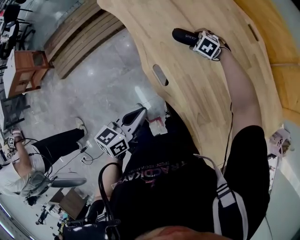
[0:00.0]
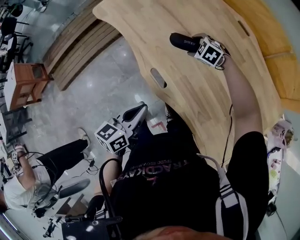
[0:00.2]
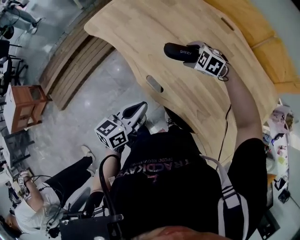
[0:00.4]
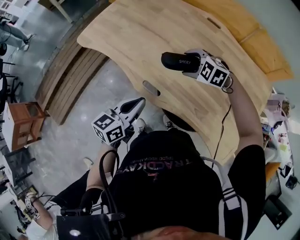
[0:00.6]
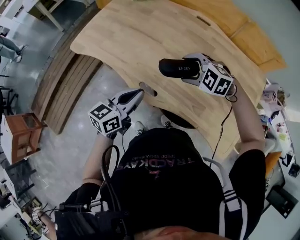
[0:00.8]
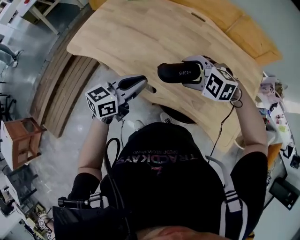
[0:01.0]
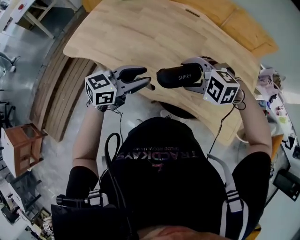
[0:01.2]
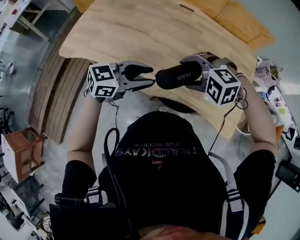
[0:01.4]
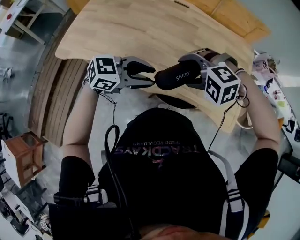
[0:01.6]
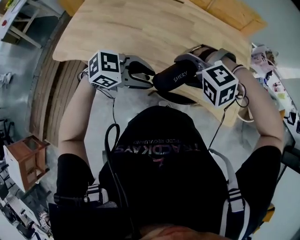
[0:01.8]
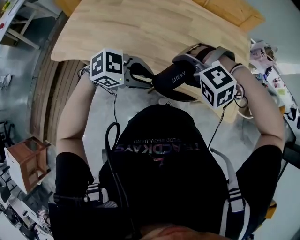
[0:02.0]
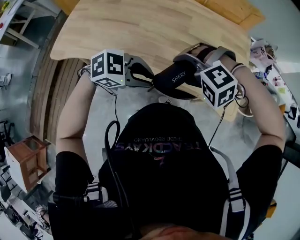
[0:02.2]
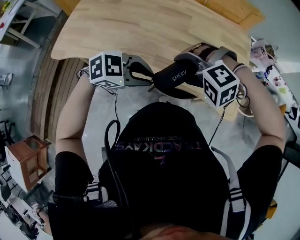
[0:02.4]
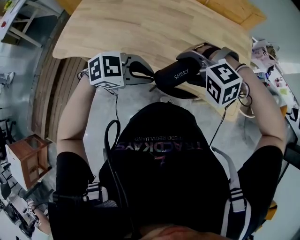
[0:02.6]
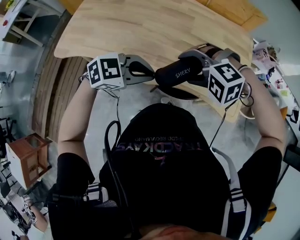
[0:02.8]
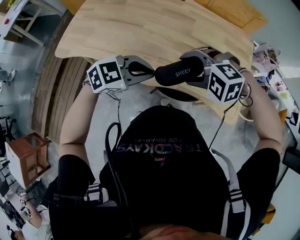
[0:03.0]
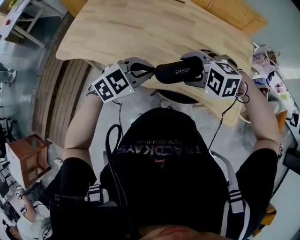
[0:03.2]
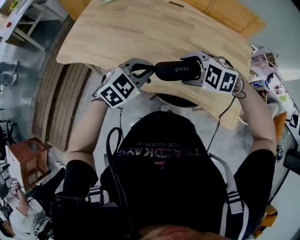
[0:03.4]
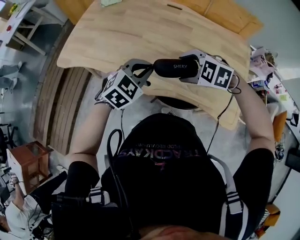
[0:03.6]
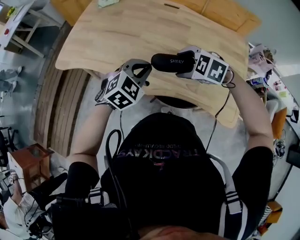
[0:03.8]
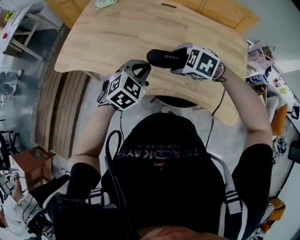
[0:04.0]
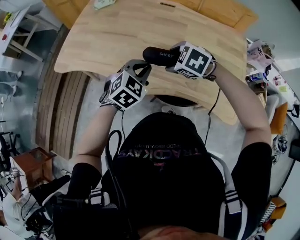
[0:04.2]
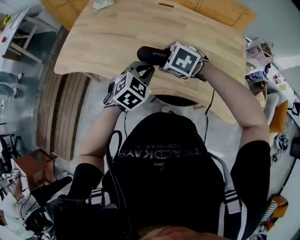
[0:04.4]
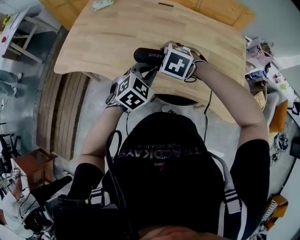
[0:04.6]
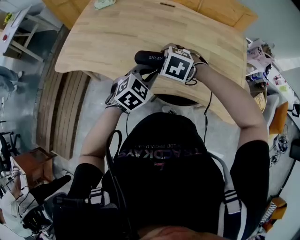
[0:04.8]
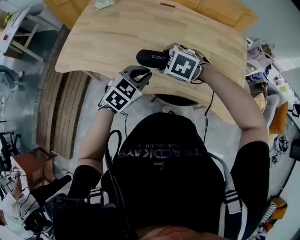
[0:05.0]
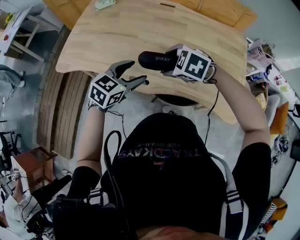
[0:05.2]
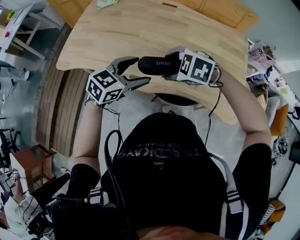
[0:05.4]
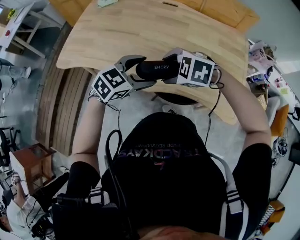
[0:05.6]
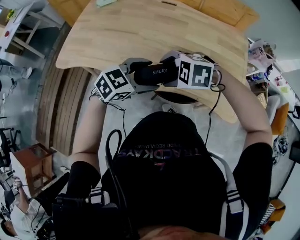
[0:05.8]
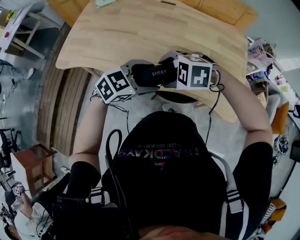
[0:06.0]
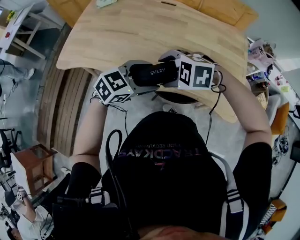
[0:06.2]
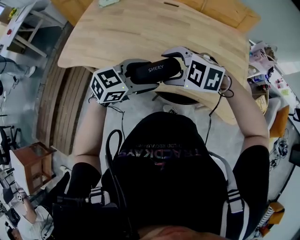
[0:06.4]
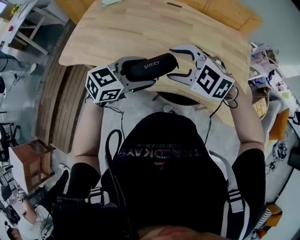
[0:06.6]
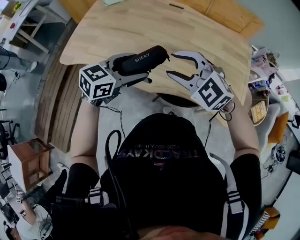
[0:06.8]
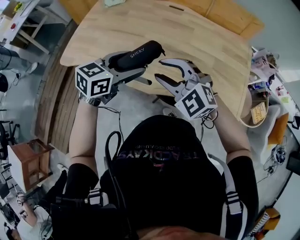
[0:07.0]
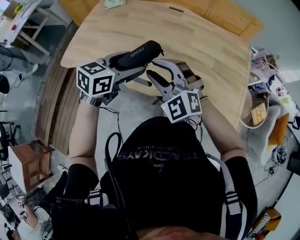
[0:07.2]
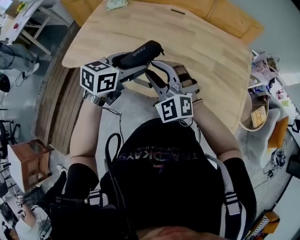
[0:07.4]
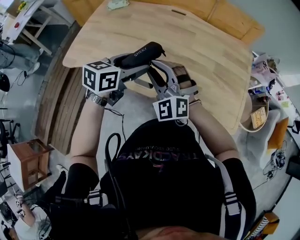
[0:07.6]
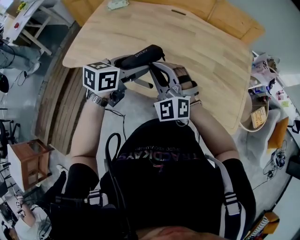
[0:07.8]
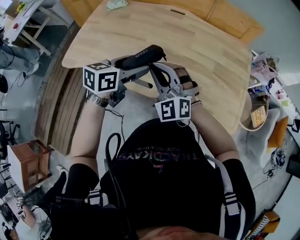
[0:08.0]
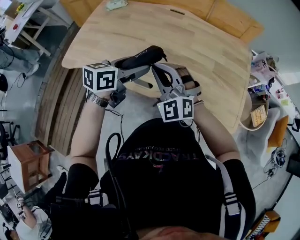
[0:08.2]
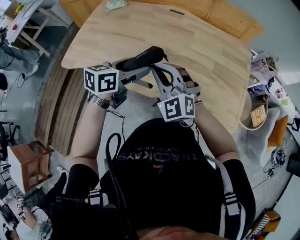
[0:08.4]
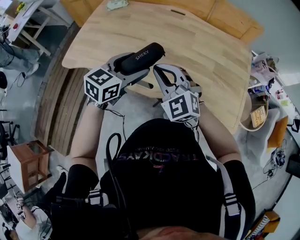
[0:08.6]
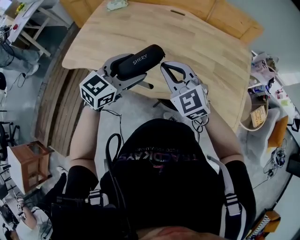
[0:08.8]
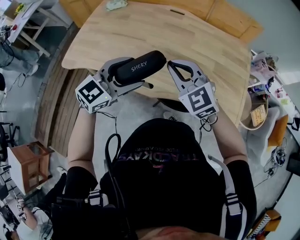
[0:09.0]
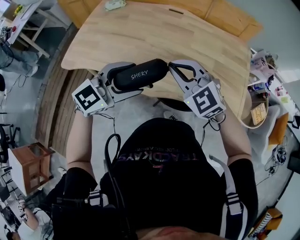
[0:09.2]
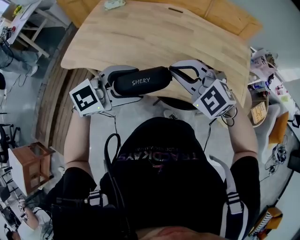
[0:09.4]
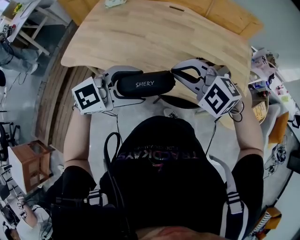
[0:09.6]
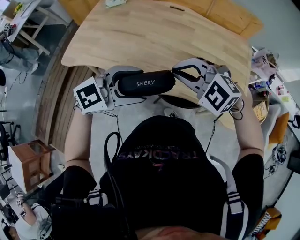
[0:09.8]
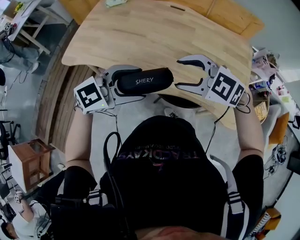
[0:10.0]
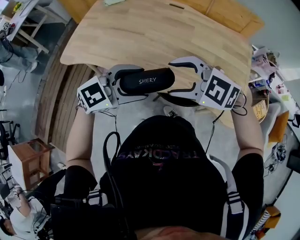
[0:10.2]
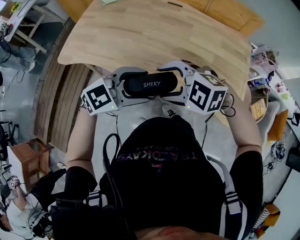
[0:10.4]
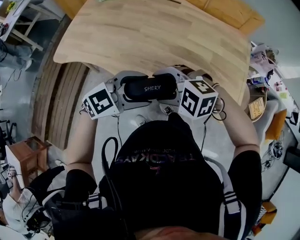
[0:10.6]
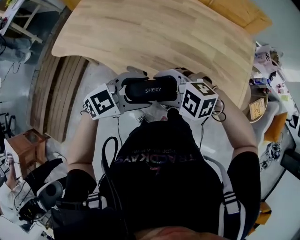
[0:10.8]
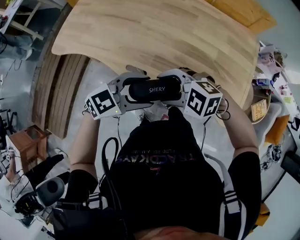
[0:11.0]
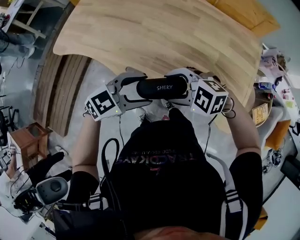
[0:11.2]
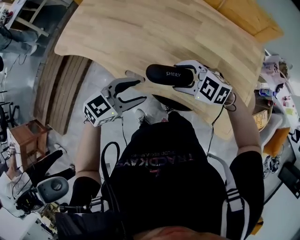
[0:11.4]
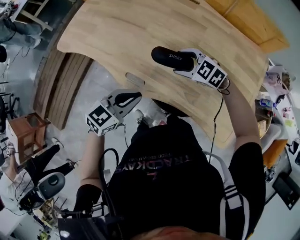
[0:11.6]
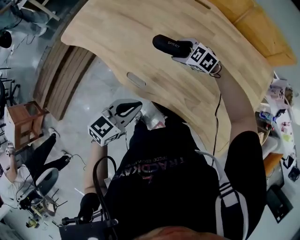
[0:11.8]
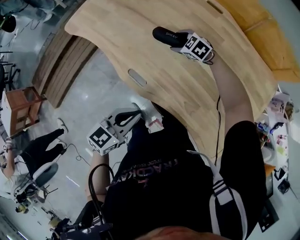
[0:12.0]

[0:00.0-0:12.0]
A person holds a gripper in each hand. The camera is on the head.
0:00.0 to 0:01.6: The left gripper shifts some 10 cm upward, turns by approximately 90 degrees, and opens up. Meanwhile the right gripper changes place by some 40 cm.
0:01.6 to 0:03.0: The left gripper closes up.
0:03.0 to 0:04.4: The right gripper changes place by some 10 cm, and twists roughly 40 degrees clockwise, seen from behind. The left gripper shifts by approximately 5 cm, and rotates approximately 40 degrees.
0:04.4 to 0:06.0: The left gripper ends up some 5 cm from where it was, rotates some 30 degrees, and opens. Meanwhile the right gripper moves roughly 10 cm, and turns by about 30 degrees.
0:06.0 to 0:07.6: The left gripper ends up approximately 10 cm from where it was, and rotates roughly 40 degrees. Meanwhile the right gripper changes place by approximately 10 cm, angles its fingers upward, by approximately 50 degrees, and closes.
0:07.6 to 0:09.0: The left gripper goes some 5 cm backward, and rotates approximately 30 degrees. Meanwhile the right gripper heads to the right, covering about 5 cm, and turns by approximately 30 degrees.
0:09.0 to 0:10.4: The left gripper moves about 10 cm. Meanwhile the right gripper changes place by approximately 10 cm, swivels roughly 40 degrees, and opens up.
0:10.4 to 0:12.0: The left gripper is displaced downward by roughly 10 cm, rotates some 60 degrees, and closes up; the right gripper ends up approximately 40 cm from where it was.

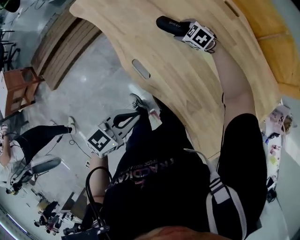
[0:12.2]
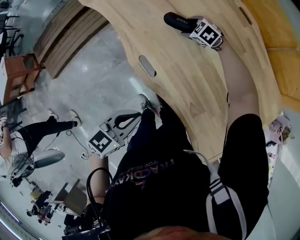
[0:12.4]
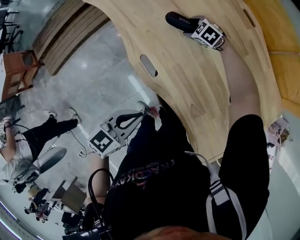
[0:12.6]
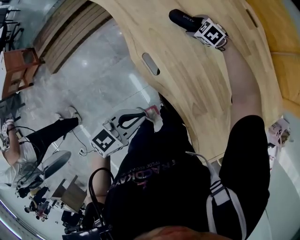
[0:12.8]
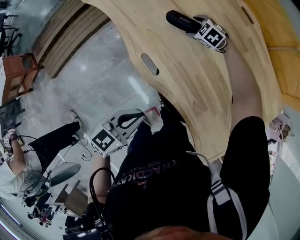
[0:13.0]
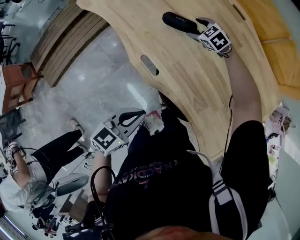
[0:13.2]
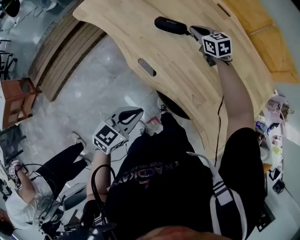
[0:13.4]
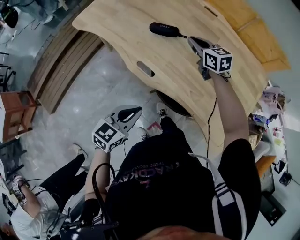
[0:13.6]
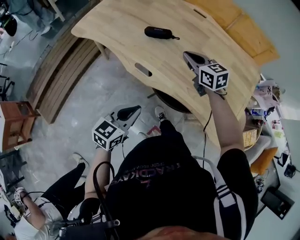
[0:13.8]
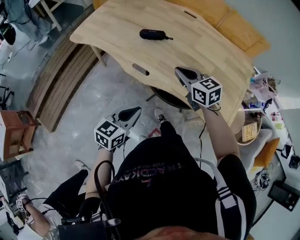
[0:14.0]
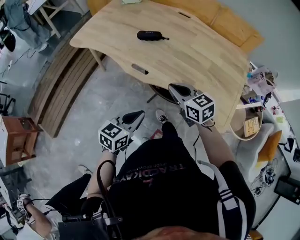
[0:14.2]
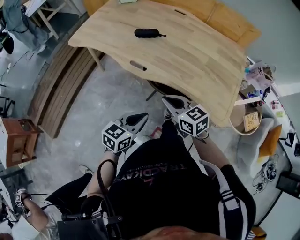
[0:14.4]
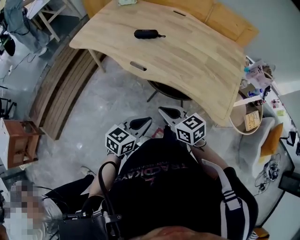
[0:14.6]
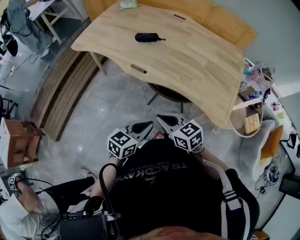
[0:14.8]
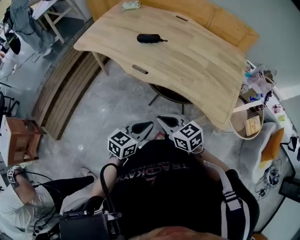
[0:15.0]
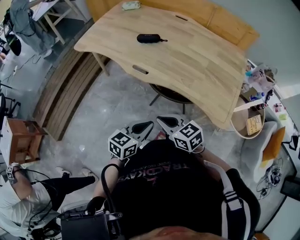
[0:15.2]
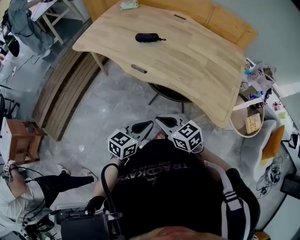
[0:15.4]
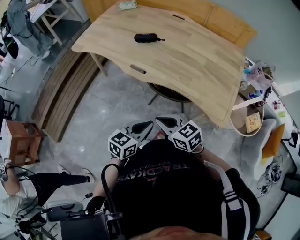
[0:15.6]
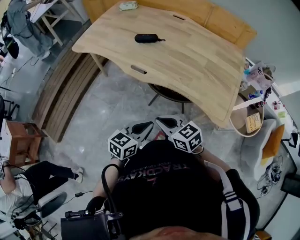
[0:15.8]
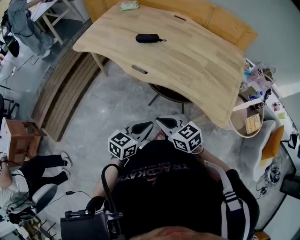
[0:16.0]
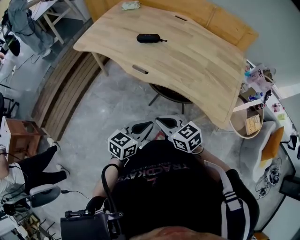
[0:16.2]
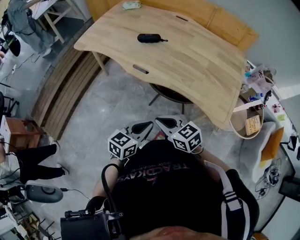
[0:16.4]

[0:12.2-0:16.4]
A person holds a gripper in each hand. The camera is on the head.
0:12.2 to 0:13.6: The left gripper shifts roughly 5 cm to the left, while the right gripper heads upward and backward, covering roughly 20 cm, changes its angle by about 50 degrees, and closes up.
0:13.6 to 0:15.0: The right gripper goes some 50 cm backward; the left gripper goes approximately 15 cm backward.
0:15.0 to 0:16.4: Neither gripper changes place.

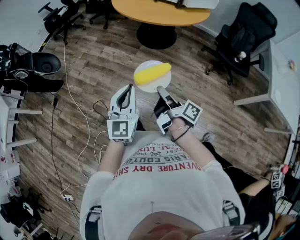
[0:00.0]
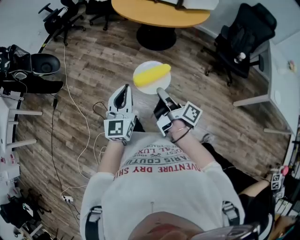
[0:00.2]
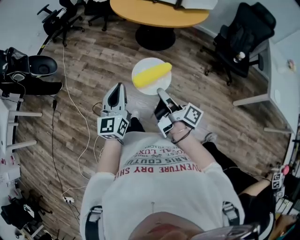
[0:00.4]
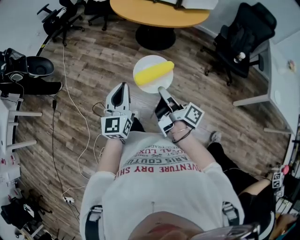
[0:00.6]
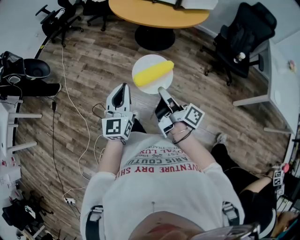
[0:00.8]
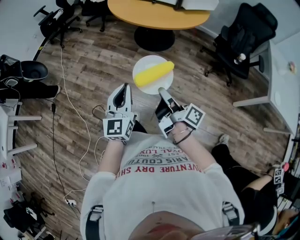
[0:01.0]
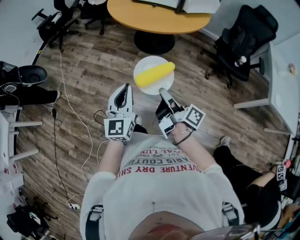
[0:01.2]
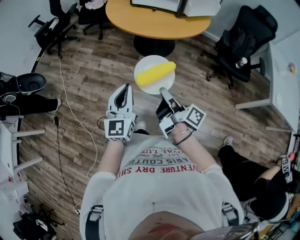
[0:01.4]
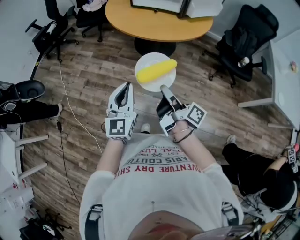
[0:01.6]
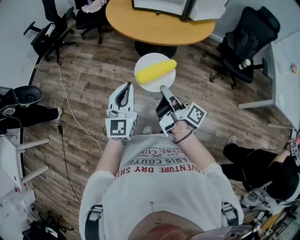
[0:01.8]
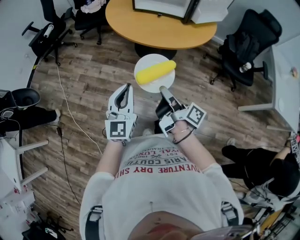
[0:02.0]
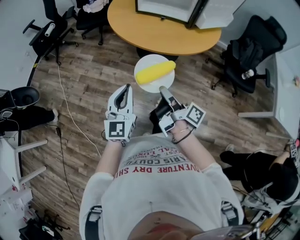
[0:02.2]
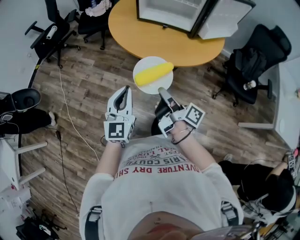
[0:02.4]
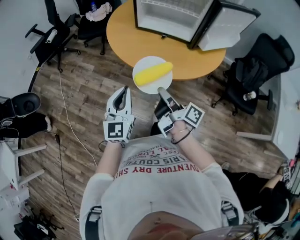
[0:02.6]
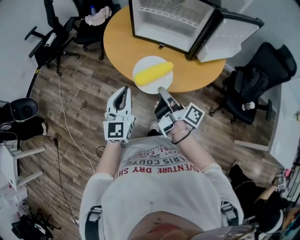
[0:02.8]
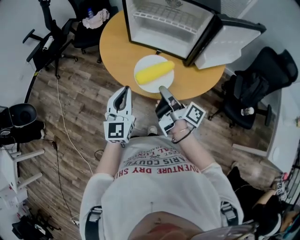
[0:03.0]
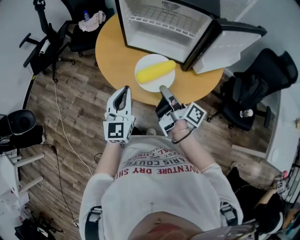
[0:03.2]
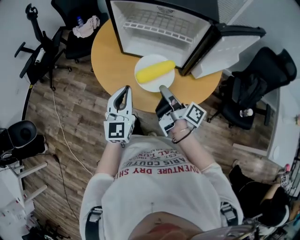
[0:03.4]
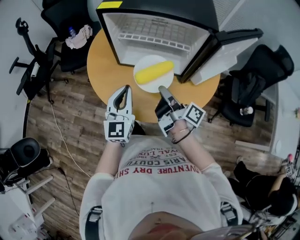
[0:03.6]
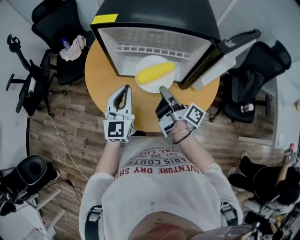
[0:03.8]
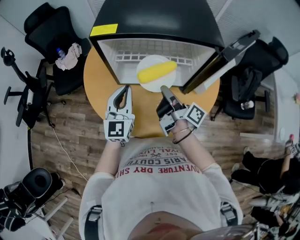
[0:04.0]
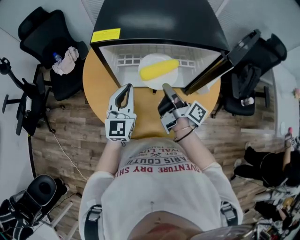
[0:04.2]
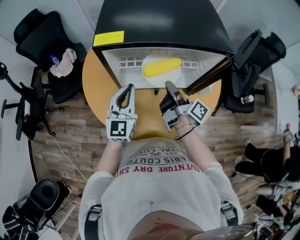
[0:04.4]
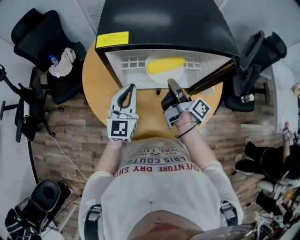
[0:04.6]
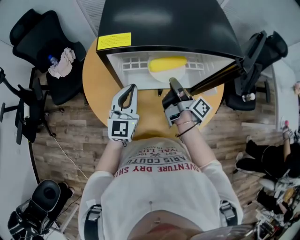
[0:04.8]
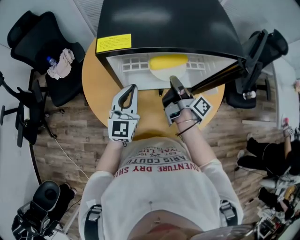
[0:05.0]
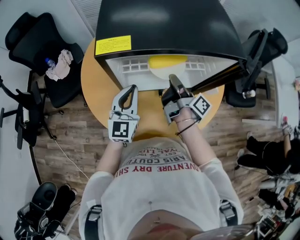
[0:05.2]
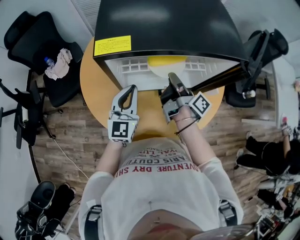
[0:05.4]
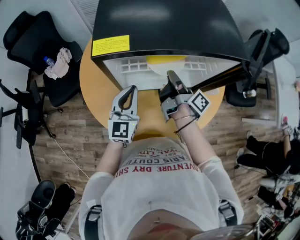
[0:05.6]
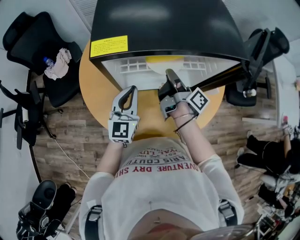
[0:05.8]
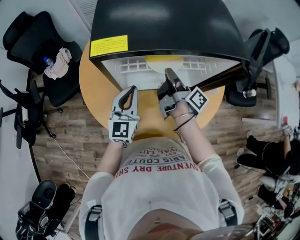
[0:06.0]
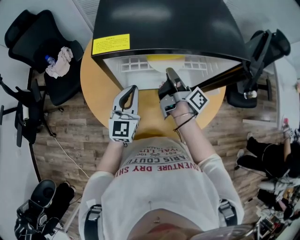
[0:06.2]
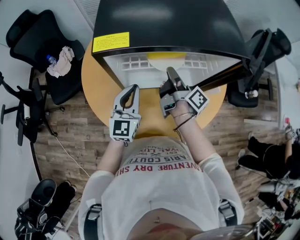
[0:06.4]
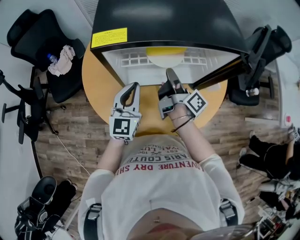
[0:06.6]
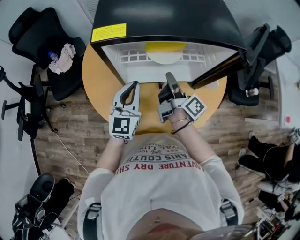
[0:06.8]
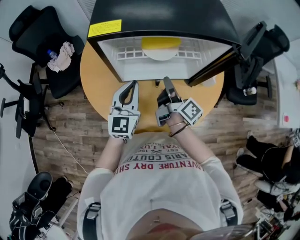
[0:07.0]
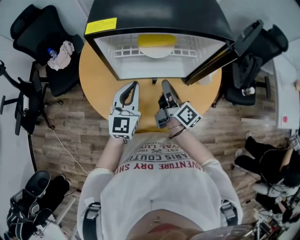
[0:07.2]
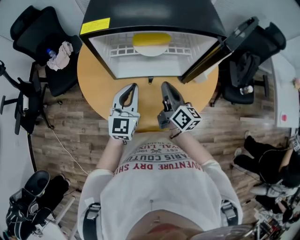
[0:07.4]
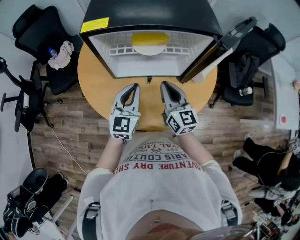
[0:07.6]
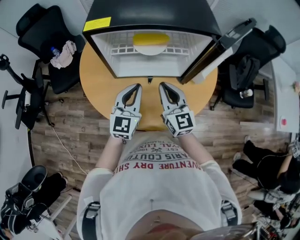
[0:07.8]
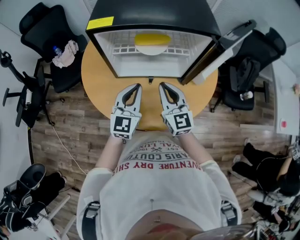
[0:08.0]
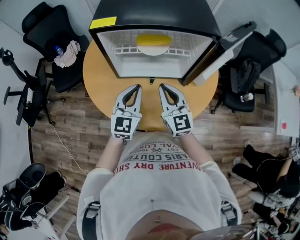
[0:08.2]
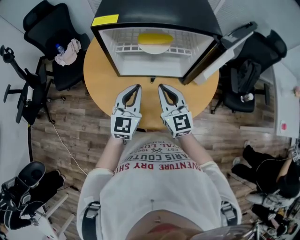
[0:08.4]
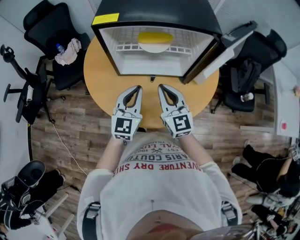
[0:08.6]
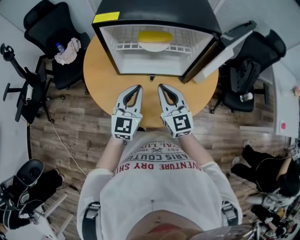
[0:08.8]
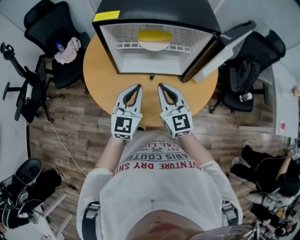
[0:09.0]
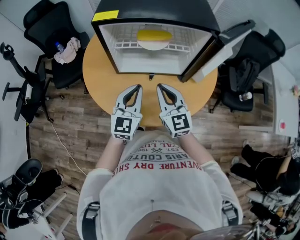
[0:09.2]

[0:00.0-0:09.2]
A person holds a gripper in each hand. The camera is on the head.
0:00.0 to 0:01.6: The left gripper changes place by roughly 25 cm.
0:01.6 to 0:03.0: The left gripper shifts by some 40 cm.
0:03.0 to 0:04.6: The left gripper ends up about 35 cm from where it was, and changes its angle by some 30 degrees.
0:06.2 to 0:07.6: The left gripper shifts by about 10 cm.
